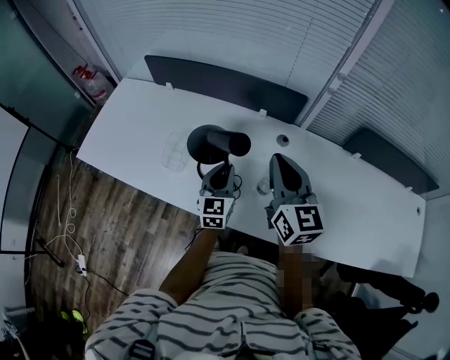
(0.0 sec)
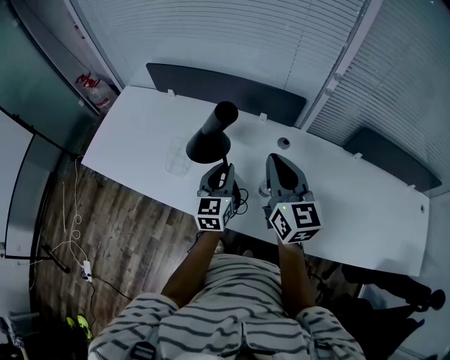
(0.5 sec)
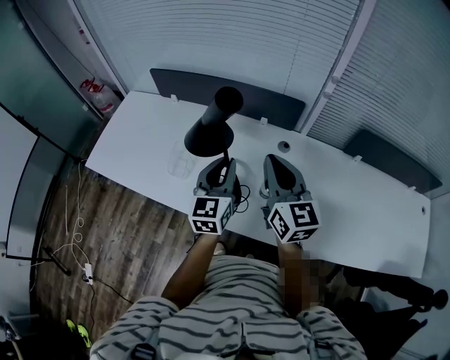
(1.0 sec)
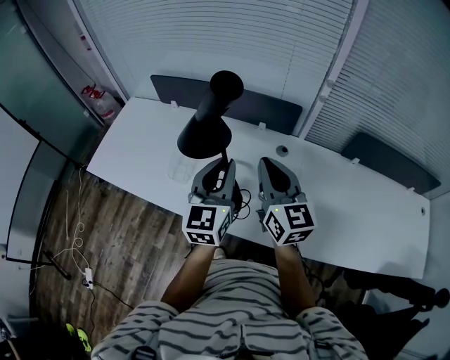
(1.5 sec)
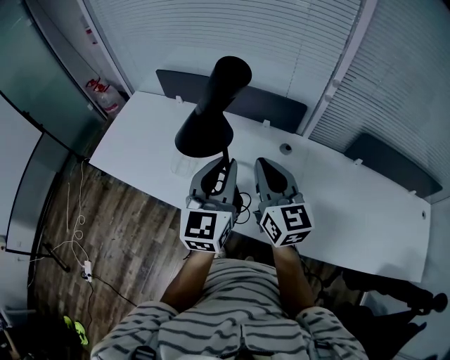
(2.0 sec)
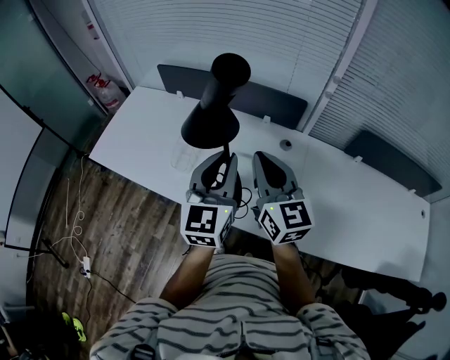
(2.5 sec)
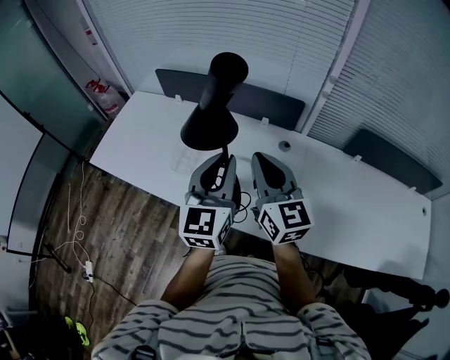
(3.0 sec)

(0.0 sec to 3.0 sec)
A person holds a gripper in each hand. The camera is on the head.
0.0 sec - 1.5 sec: The left gripper heads upward, covering some 20 cm.
1.5 sec - 3.0 sec: The grippers move only a little.

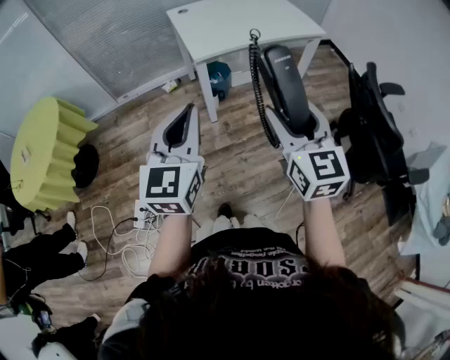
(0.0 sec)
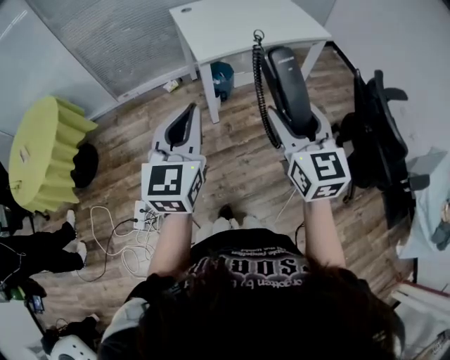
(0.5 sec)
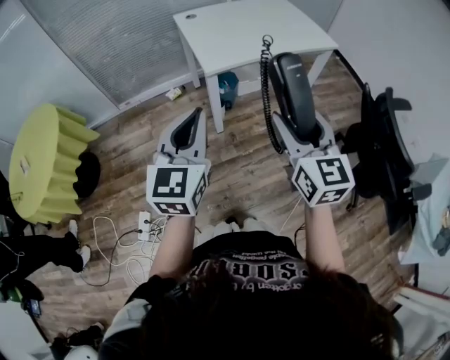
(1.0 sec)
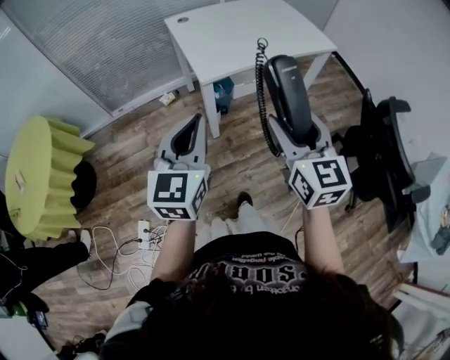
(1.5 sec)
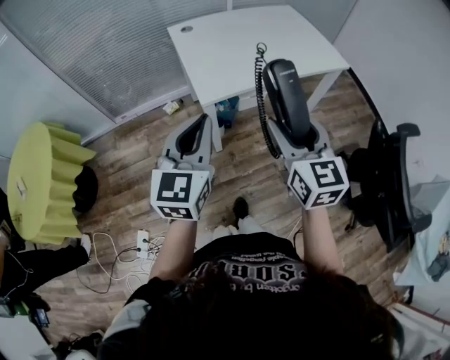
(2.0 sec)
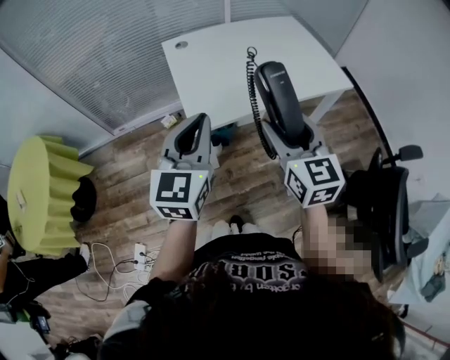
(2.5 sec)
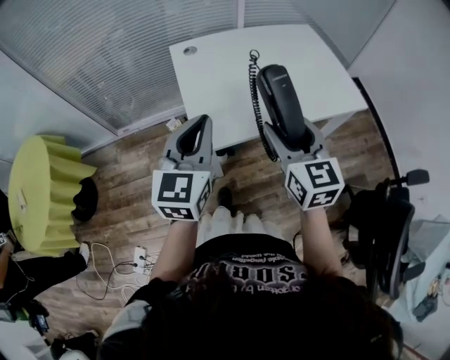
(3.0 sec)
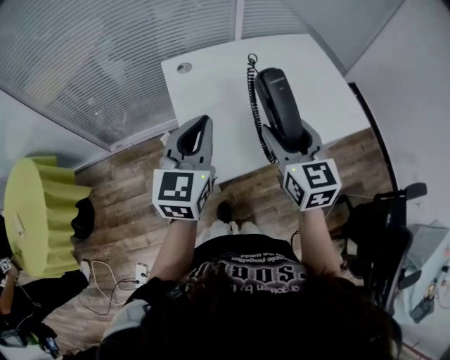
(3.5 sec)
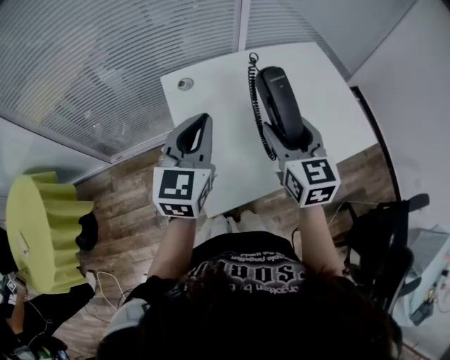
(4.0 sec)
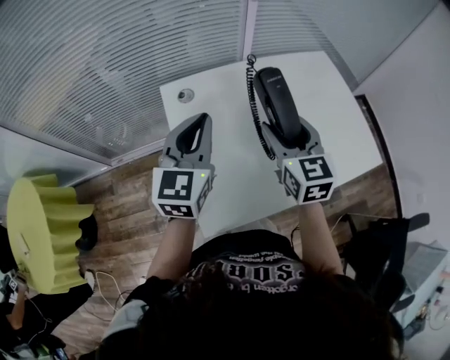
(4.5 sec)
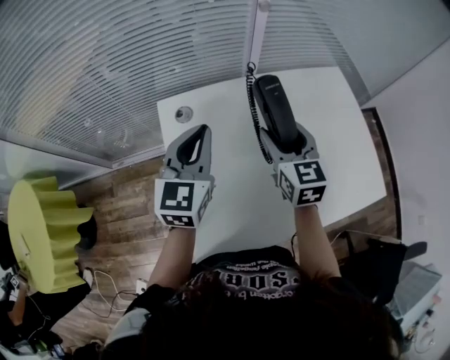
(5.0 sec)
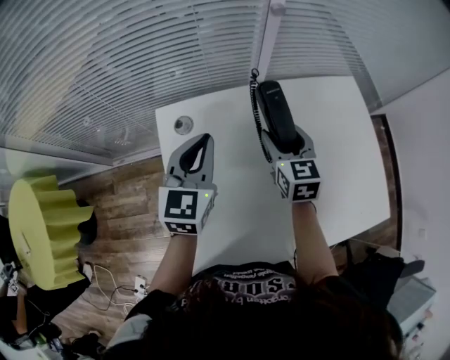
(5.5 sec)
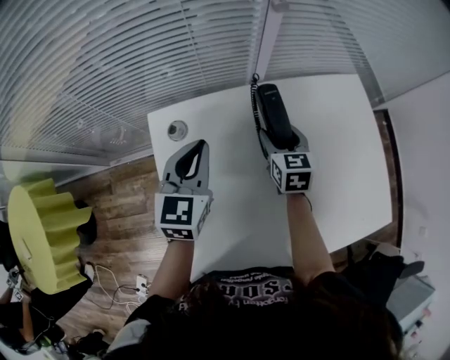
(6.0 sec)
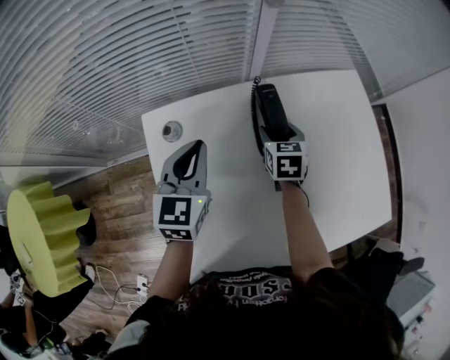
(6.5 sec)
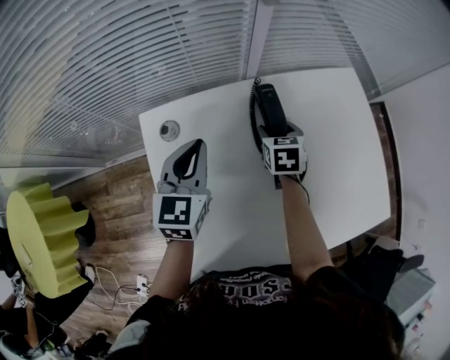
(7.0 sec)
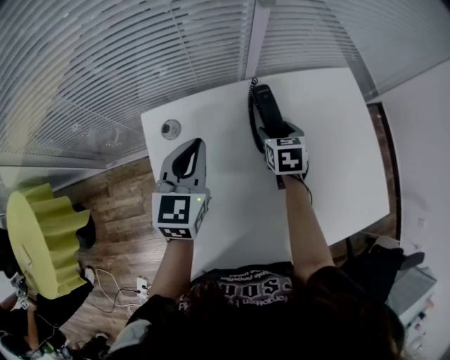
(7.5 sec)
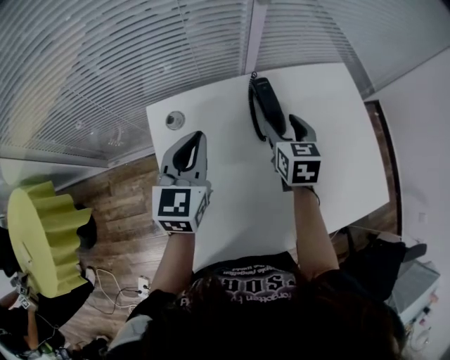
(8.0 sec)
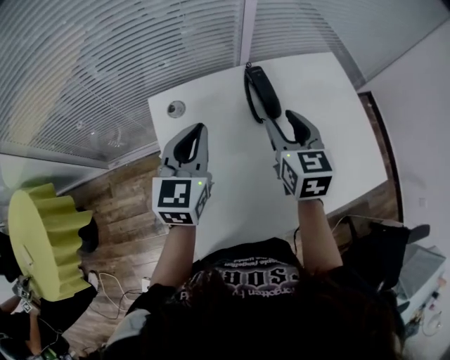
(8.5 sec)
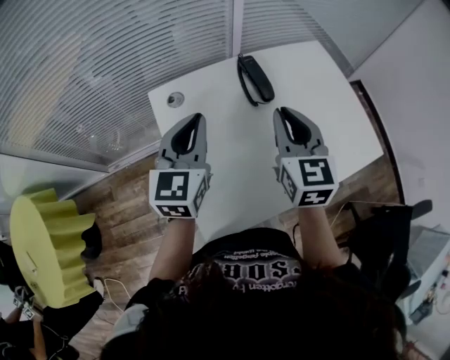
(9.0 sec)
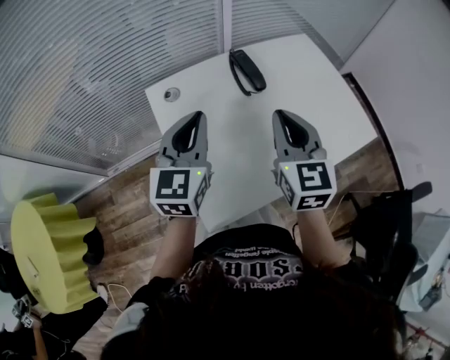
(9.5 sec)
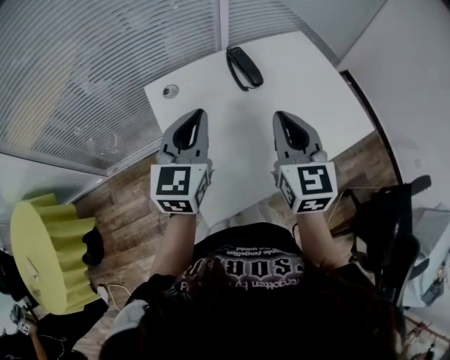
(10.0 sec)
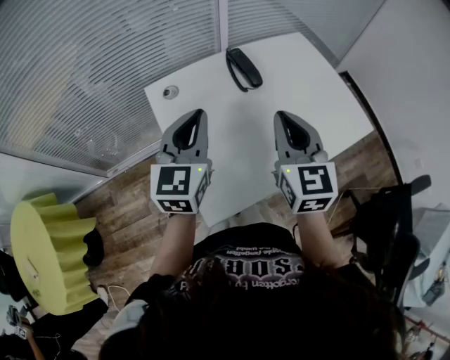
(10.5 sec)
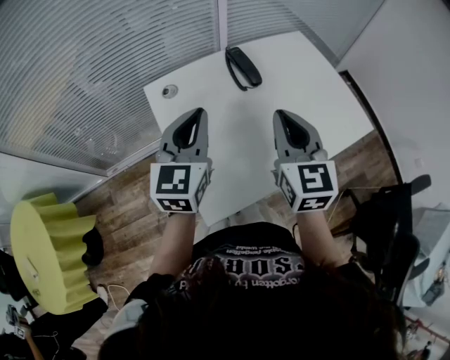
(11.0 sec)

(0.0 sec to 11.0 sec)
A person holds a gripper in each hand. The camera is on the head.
0.0 sec - 2.0 sec: The two grippers go some 25 cm forward.
2.0 sec - 3.5 sec: Both grippers move forward, about 30 cm.
3.5 sec - 5.5 sec: The grippers both shift forward by about 30 cm.
5.5 sec - 7.5 sec: The right gripper moves downward, roughly 10 cm, and turns by roughly 20 degrees.
7.5 sec - 9.0 sec: The left gripper moves backward and upward, approximately 15 cm. Meanwhile the right gripper moves upward and backward, roughly 30 cm, points its fingers some 30 degrees further upward, and closes its fingers.
9.0 sec - 11.0 sec: The right gripper moves backward, some 10 cm, while the left gripper goes some 5 cm backward.

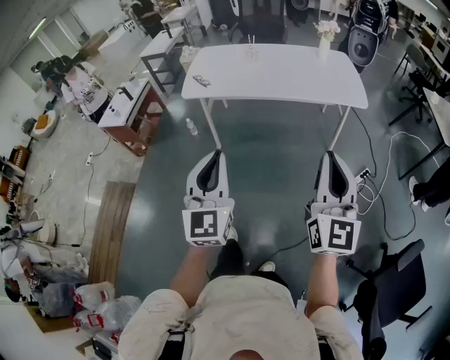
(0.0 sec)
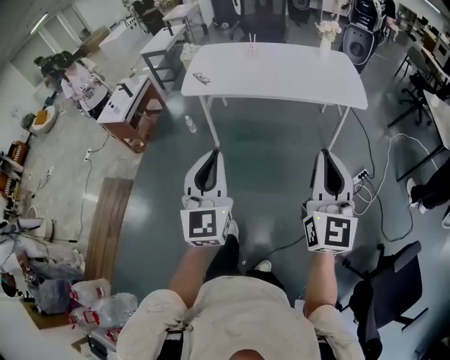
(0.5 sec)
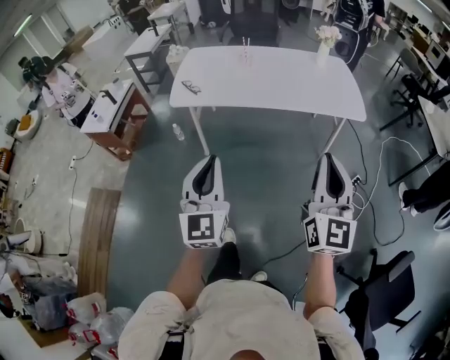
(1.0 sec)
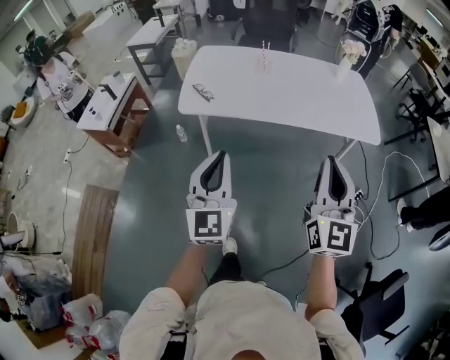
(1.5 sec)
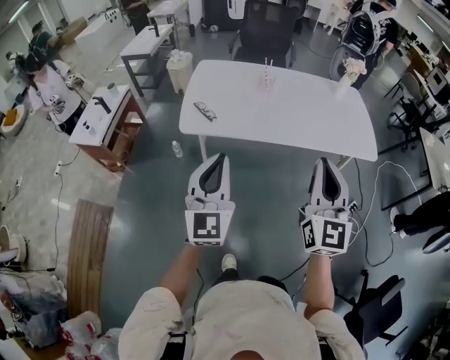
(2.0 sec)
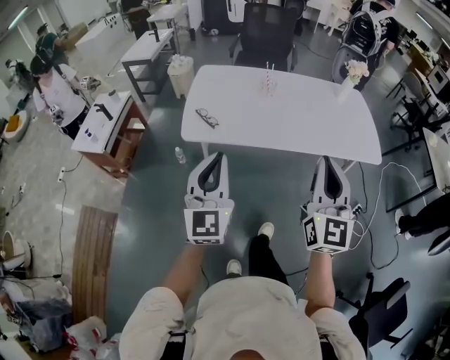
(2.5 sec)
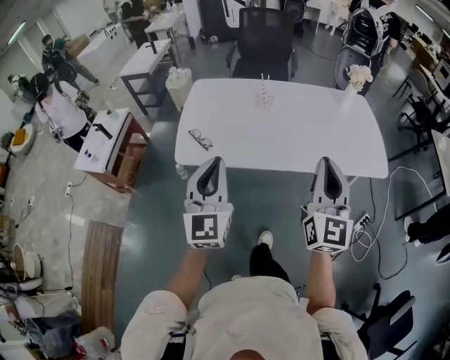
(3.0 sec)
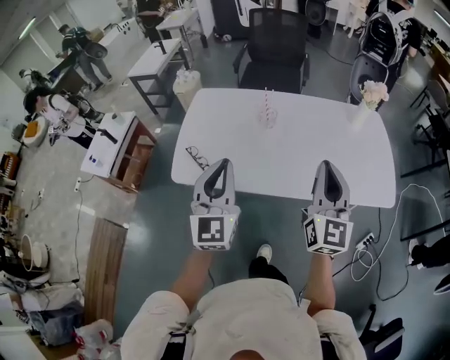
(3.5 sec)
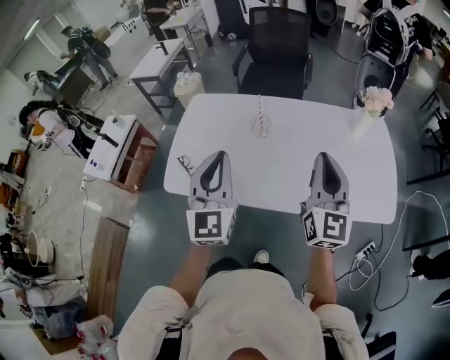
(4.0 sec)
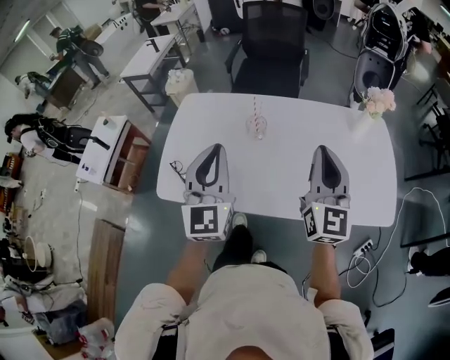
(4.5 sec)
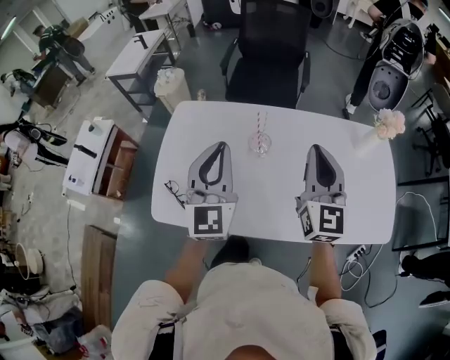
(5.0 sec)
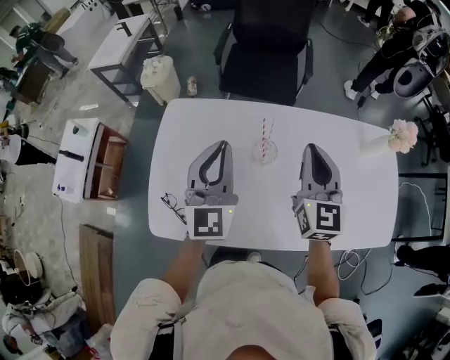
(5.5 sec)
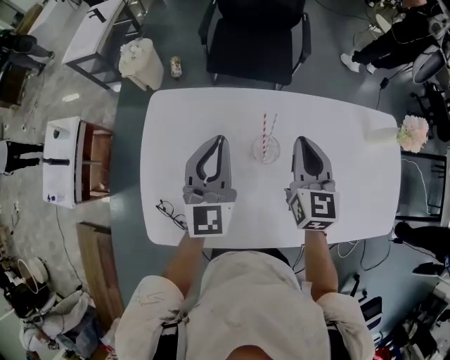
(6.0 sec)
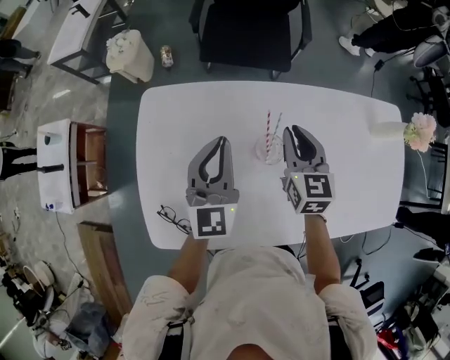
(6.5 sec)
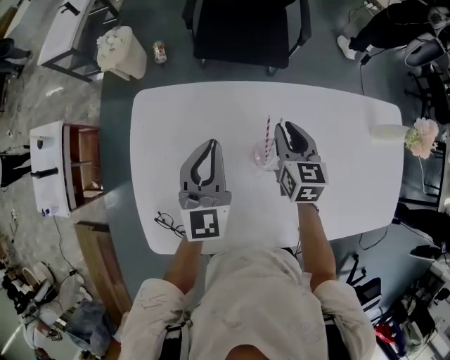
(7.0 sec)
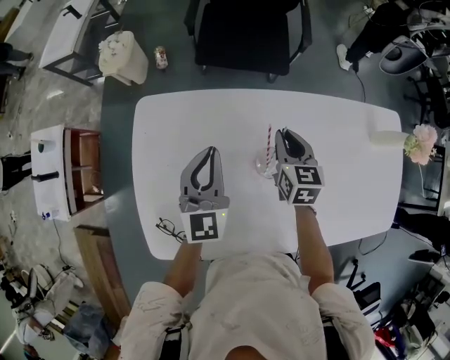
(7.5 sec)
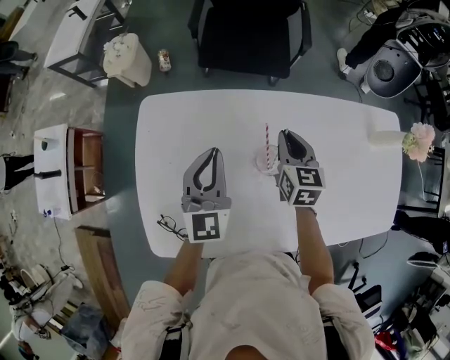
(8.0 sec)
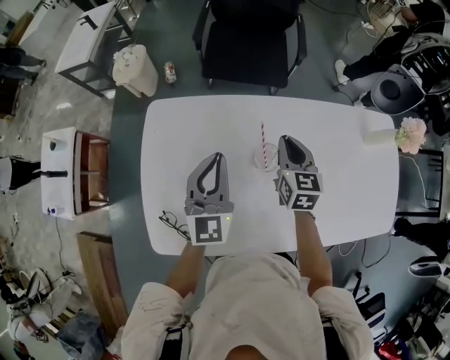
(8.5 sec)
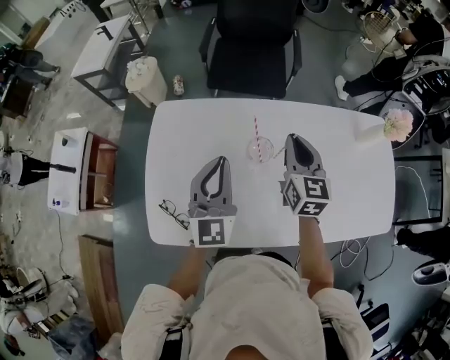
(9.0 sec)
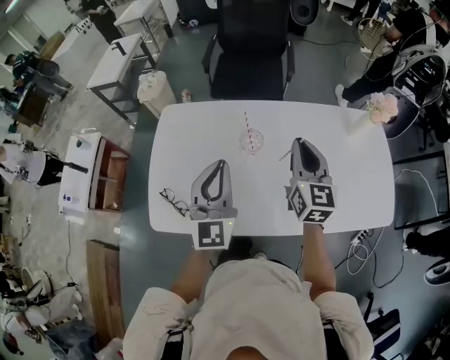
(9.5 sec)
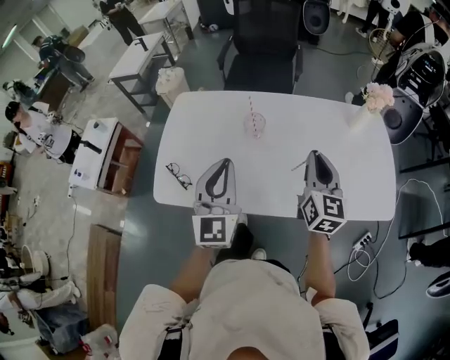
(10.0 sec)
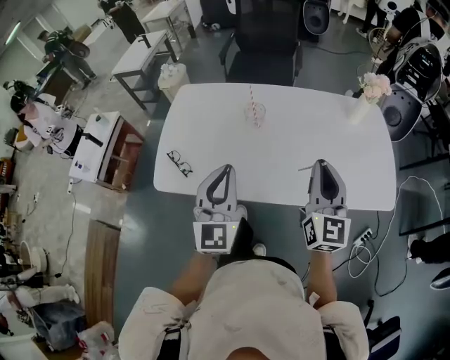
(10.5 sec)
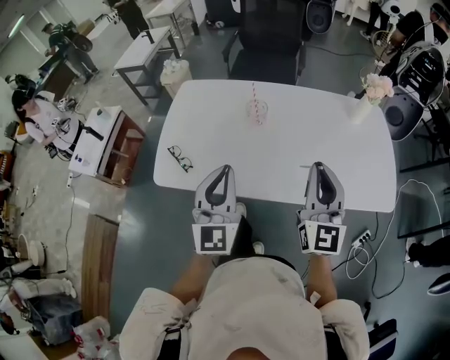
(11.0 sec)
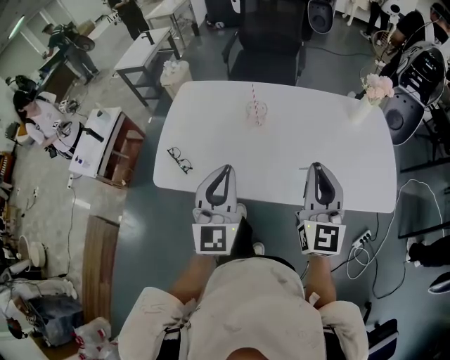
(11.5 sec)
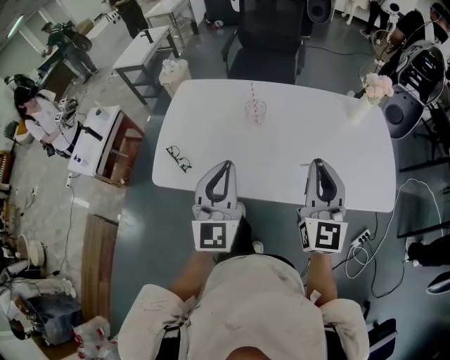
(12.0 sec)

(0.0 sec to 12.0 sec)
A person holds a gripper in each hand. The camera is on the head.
0.0 sec - 2.0 sec: The two grippers go some 35 cm forward and to the left.
2.0 sec - 4.0 sec: Both grippers move forward and to the right, approximately 40 cm.
4.0 sec - 6.0 sec: The left gripper shifts some 35 cm forward. The right gripper moves forward, downward and to the left, some 40 cm, and turns by approximately 20 degrees.
6.0 sec - 8.0 sec: The right gripper shifts roughly 15 cm downward and forward, while the left gripper moves downward, some 10 cm.
8.0 sec - 10.0 sec: The left gripper travels backward and upward by roughly 35 cm, while the right gripper is displaced backward, upward and to the right by approximately 40 cm, and rotates about 30 degrees.
10.0 sec - 12.0 sec: Both grippers travel together backward, about 10 cm. The right gripper rotates about 20 degrees.

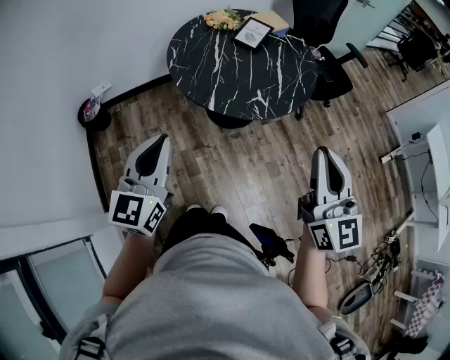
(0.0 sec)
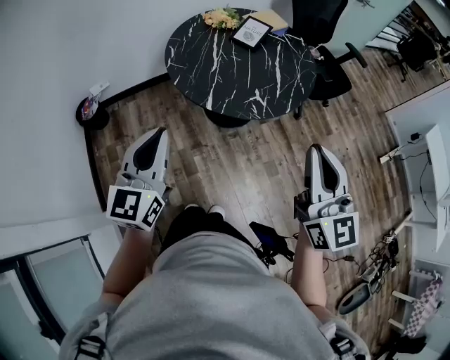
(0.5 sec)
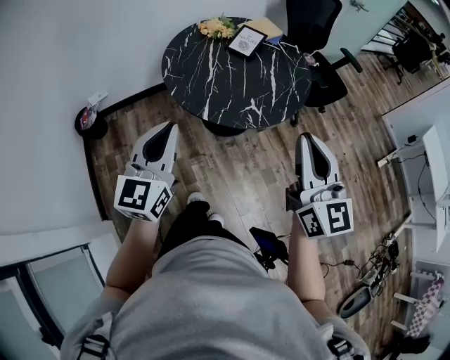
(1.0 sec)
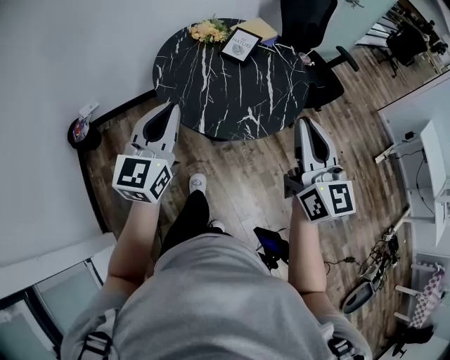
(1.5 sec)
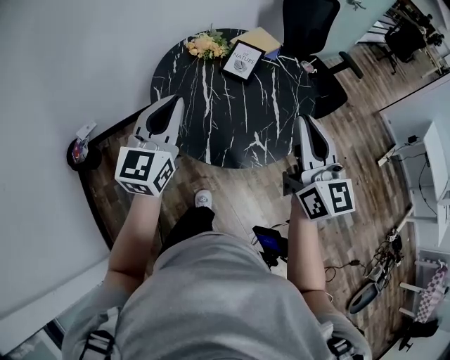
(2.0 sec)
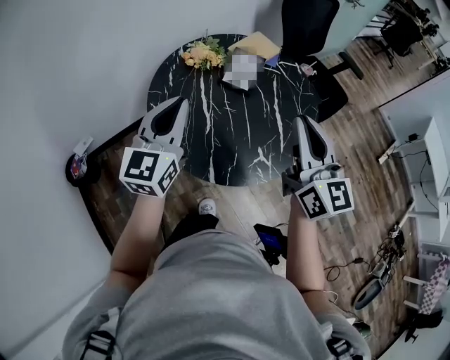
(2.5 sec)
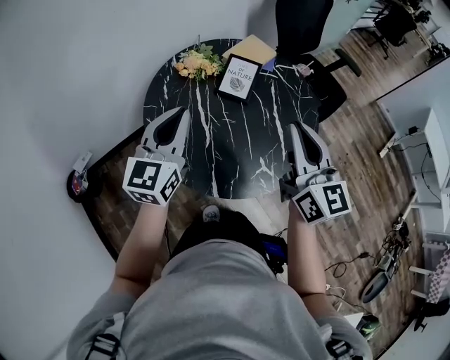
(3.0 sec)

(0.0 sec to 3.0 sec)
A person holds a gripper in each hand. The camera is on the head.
0.0 sec - 1.5 sec: The two grippers go approximately 15 cm forward.
1.5 sec - 3.0 sec: The two grippers go about 25 cm forward.
